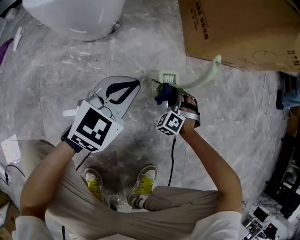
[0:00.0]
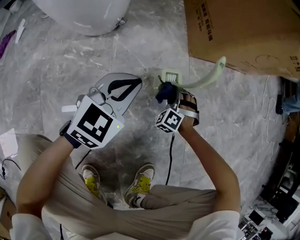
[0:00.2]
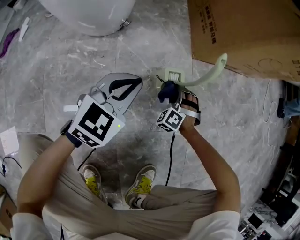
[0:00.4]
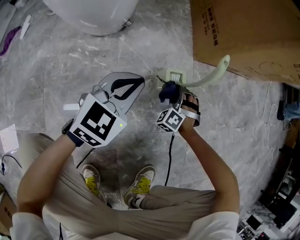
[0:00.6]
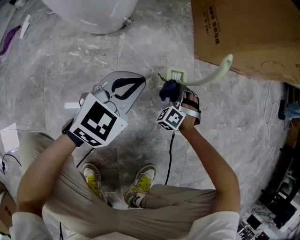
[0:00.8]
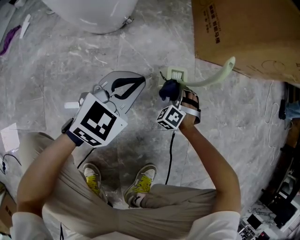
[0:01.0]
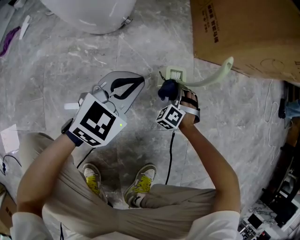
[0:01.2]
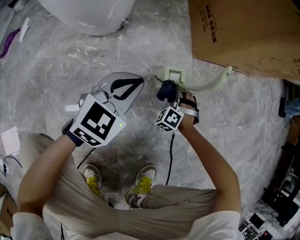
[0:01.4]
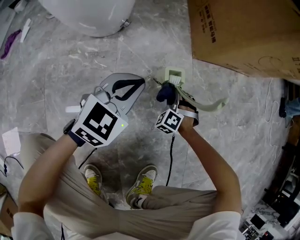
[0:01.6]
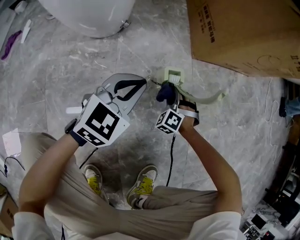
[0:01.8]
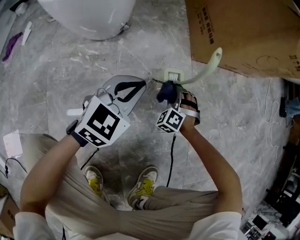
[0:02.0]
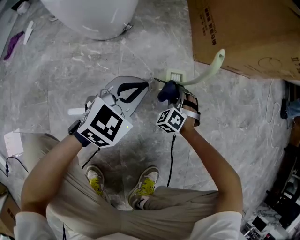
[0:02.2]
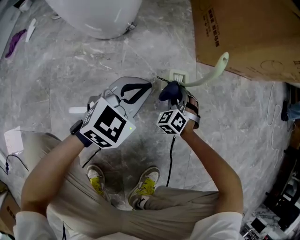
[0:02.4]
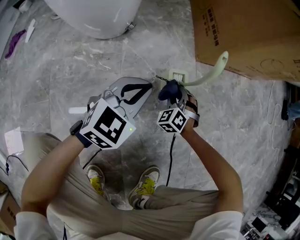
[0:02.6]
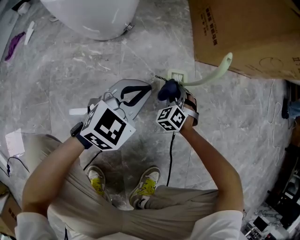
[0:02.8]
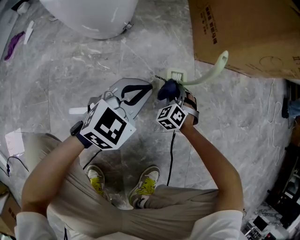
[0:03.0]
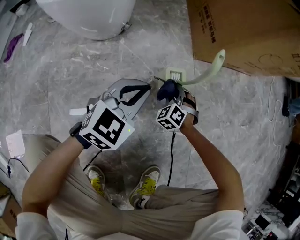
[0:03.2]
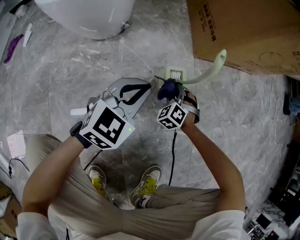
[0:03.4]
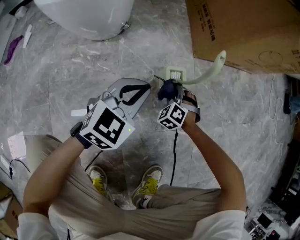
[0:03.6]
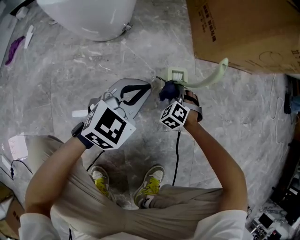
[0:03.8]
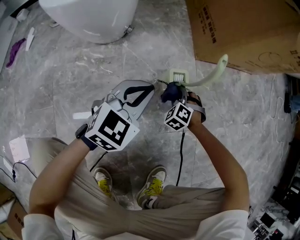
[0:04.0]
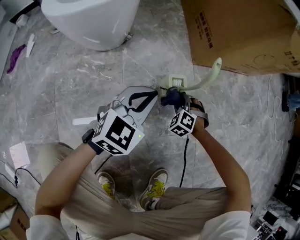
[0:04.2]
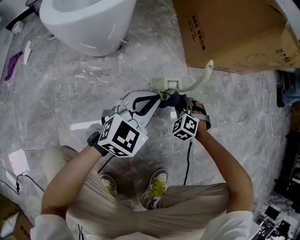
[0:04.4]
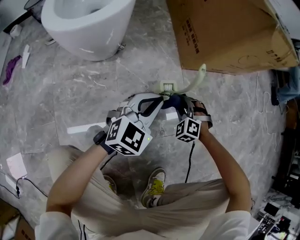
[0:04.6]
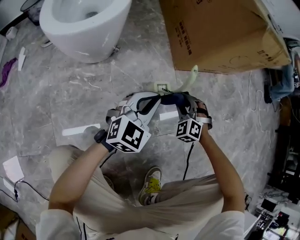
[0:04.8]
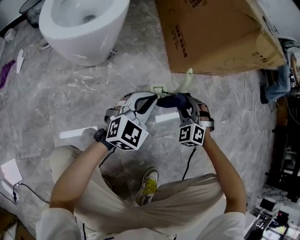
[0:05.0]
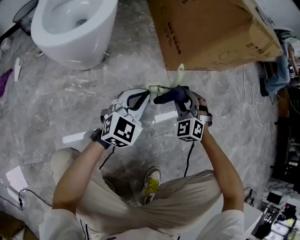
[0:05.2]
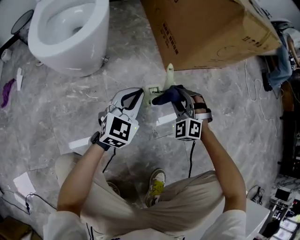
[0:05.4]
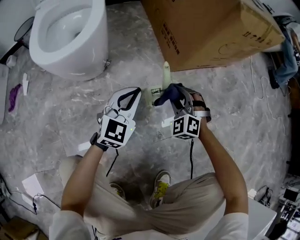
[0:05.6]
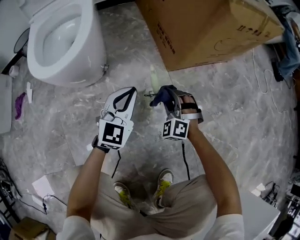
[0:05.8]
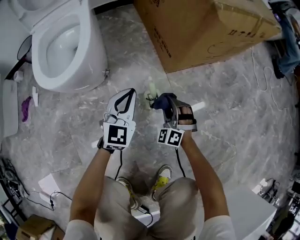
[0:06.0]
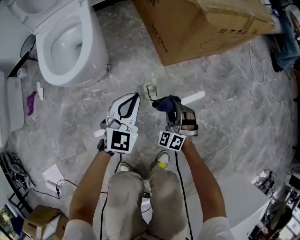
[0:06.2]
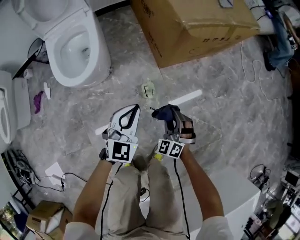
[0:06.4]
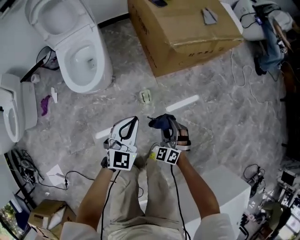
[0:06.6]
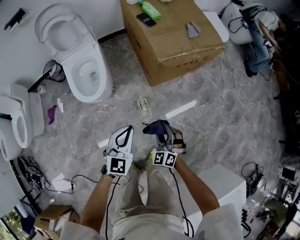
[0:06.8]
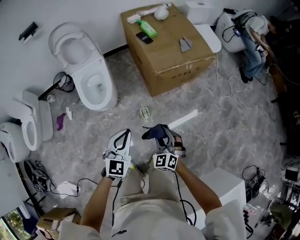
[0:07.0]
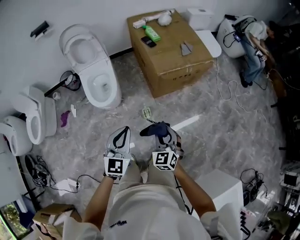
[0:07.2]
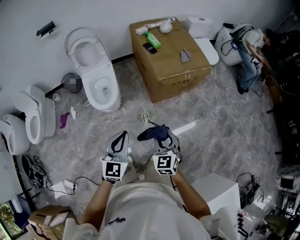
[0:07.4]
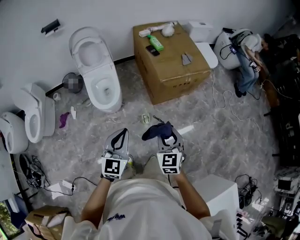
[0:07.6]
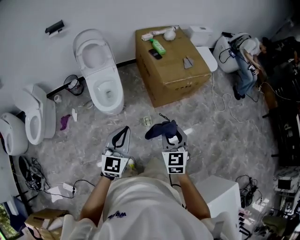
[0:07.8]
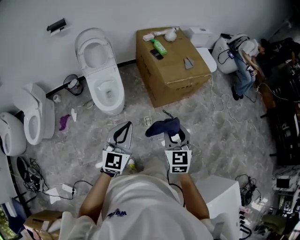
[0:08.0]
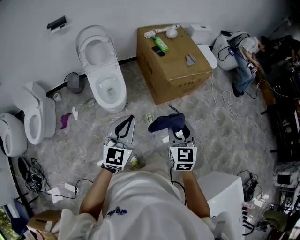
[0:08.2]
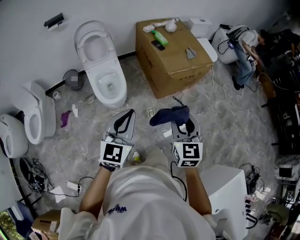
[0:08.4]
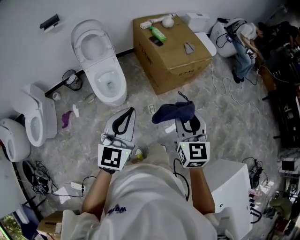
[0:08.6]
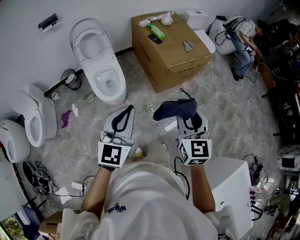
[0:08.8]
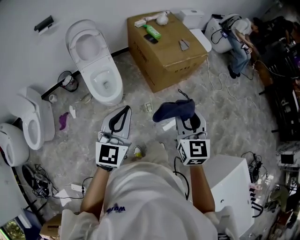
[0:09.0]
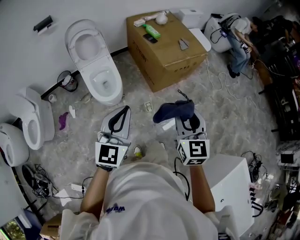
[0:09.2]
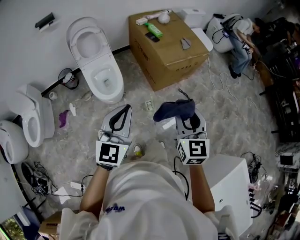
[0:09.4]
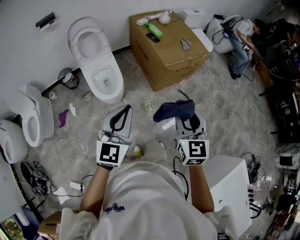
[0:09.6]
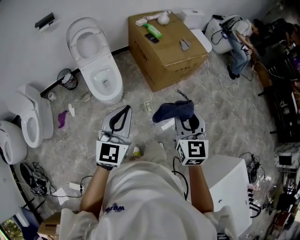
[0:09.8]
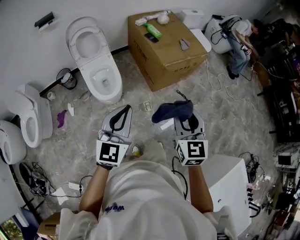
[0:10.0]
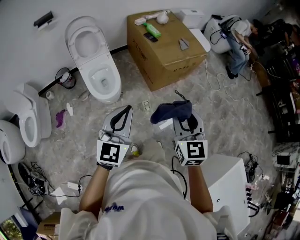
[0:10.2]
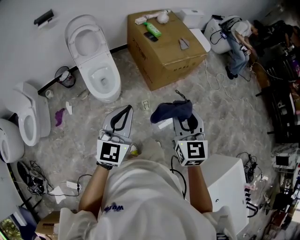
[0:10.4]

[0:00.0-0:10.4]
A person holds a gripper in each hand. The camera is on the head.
0:00.0 to 0:01.4: The grippers move only a little.
0:03.0 to 0:04.4: The right gripper changes place by approximately 5 cm.
0:04.4 to 0:06.0: The right gripper is displaced upward by approximately 15 cm, and turns by some 30 degrees; the left gripper heads upward and forward, covering about 10 cm.
0:06.0 to 0:07.4: Both grippers move upward, roughly 70 cm. The right gripper twists roughly 50 degrees clockwise, seen from behind.
0:07.4 to 0:09.0: The left gripper heads to the left and upward, covering roughly 15 cm. The right gripper is displaced upward and to the left by some 15 cm.
0:09.0 to 0:10.4: The grippers stay close to where they were, moving slightly.

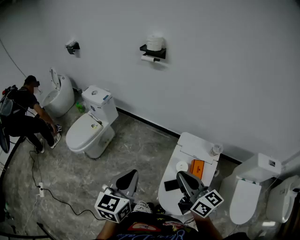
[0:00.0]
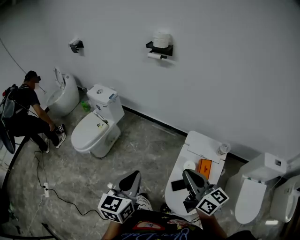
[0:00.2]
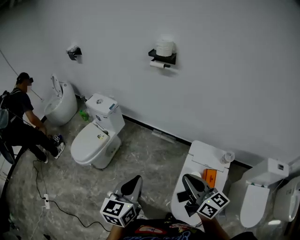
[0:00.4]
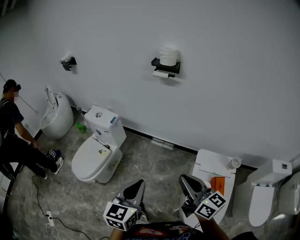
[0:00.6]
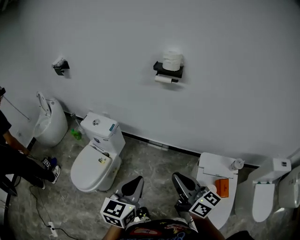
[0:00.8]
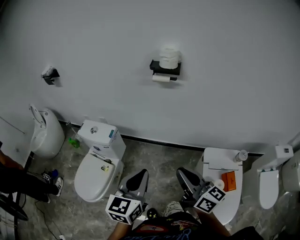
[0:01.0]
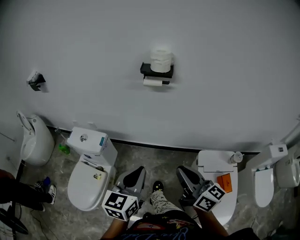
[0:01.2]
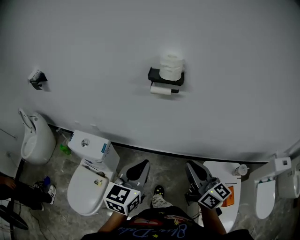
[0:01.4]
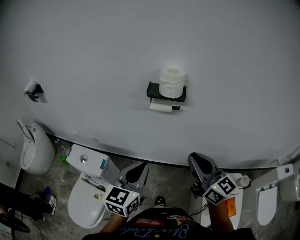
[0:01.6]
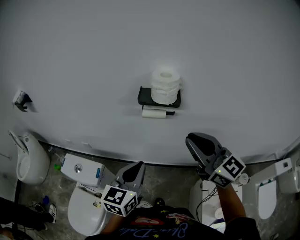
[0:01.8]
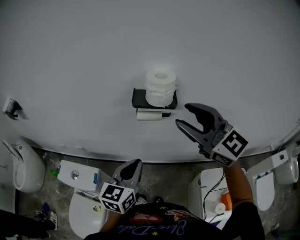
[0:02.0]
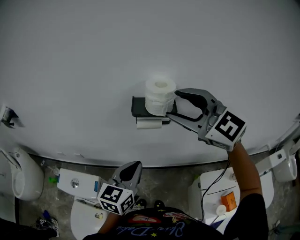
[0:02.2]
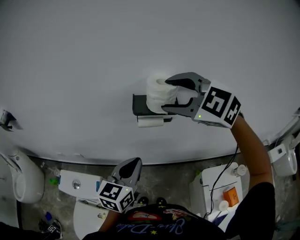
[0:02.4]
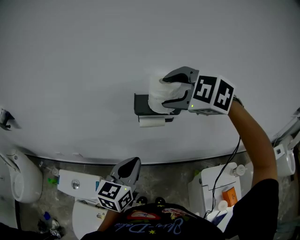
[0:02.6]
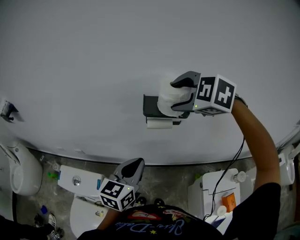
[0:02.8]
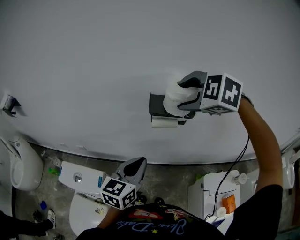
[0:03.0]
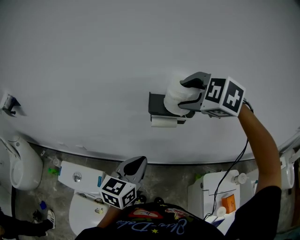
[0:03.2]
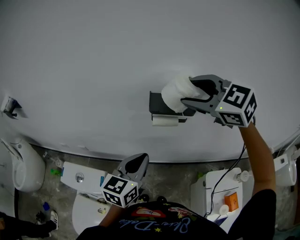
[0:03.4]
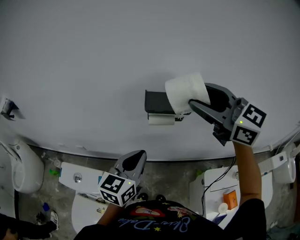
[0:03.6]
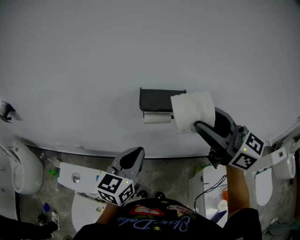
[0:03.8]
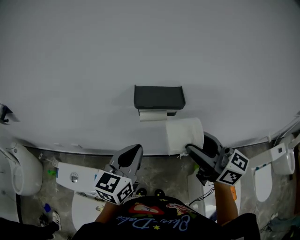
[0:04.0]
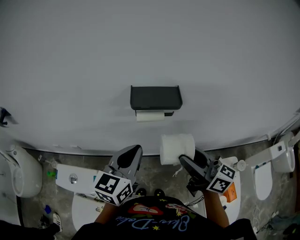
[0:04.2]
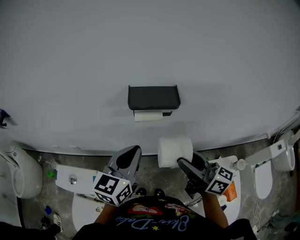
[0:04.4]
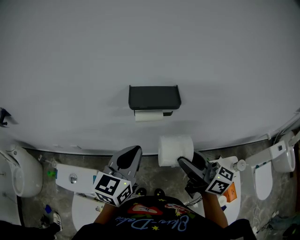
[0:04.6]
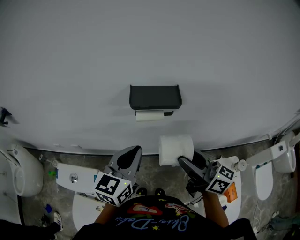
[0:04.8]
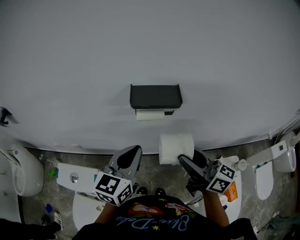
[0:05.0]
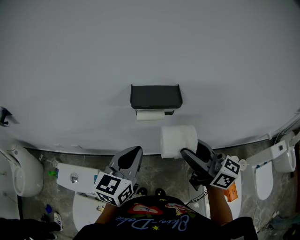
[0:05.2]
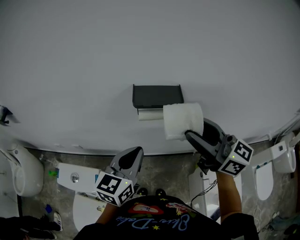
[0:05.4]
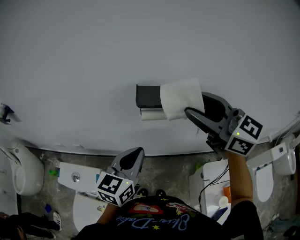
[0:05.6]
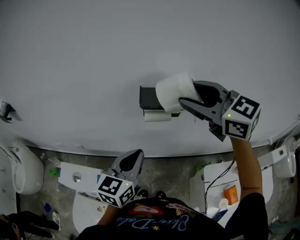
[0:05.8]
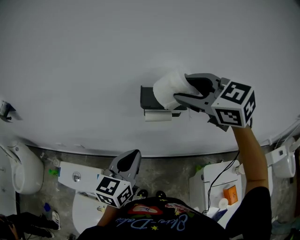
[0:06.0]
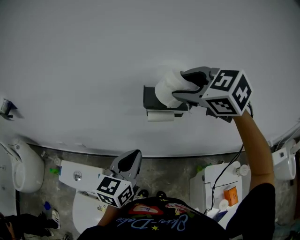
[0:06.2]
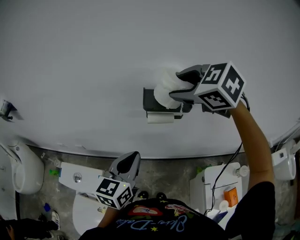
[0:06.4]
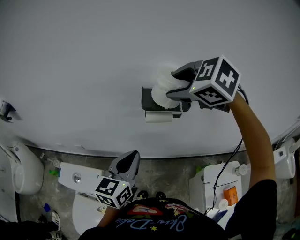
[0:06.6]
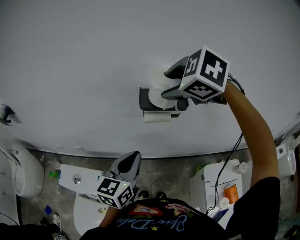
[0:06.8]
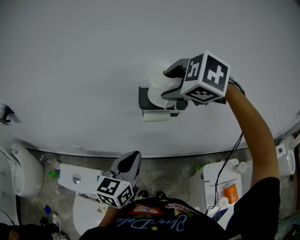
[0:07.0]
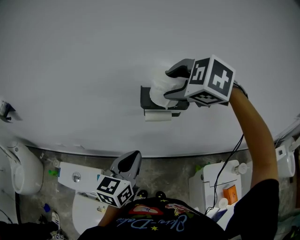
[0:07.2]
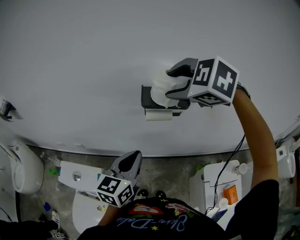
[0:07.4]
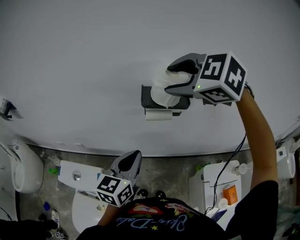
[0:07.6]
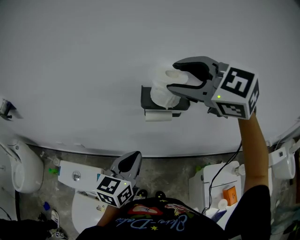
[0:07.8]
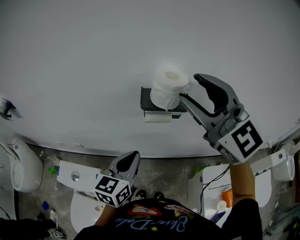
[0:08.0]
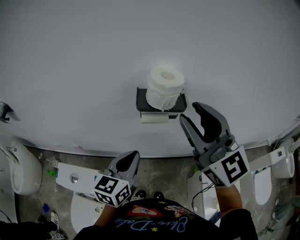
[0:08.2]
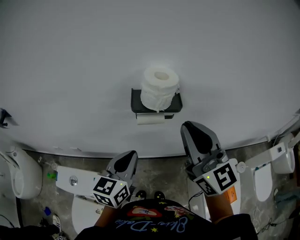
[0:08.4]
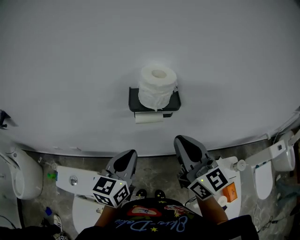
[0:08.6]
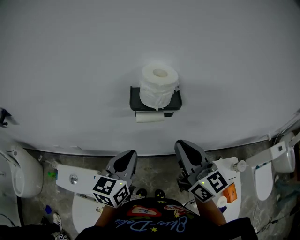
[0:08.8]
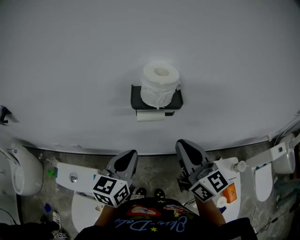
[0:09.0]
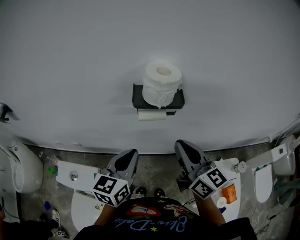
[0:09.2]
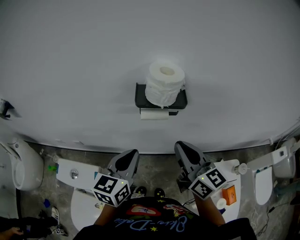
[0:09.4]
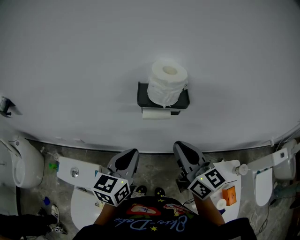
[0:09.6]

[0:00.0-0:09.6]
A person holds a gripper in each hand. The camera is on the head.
0:00.0 to 0:01.6: Both grippers are carried forward, approximately 50 cm. The right gripper changes its angle by about 30 degrees. The left gripper rotates some 20 degrees.
0:01.6 to 0:03.2: The right gripper heads forward, covering about 25 cm, angles its fingers downward, by some 60 degrees, and opens its fingers; the left gripper heads forward, covering some 15 cm.
0:03.2 to 0:04.8: The right gripper travels backward, downward and to the right by approximately 20 cm, and angles its fingers upward, by some 60 degrees.
0:04.8 to 0:06.4: The right gripper moves forward, upward and to the left, roughly 20 cm, and tilts its fingers about 50 degrees downward.
0:06.4 to 0:08.0: The right gripper goes about 10 cm backward and upward, and angles its fingers upward, by some 50 degrees.
0:08.0 to 0:09.6: The right gripper heads downward, covering approximately 20 cm, rolls clockwise, seen from behind, by approximately 50 degrees, and closes up.

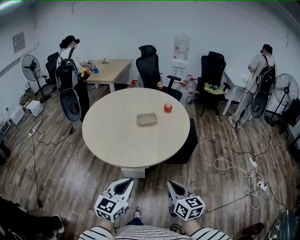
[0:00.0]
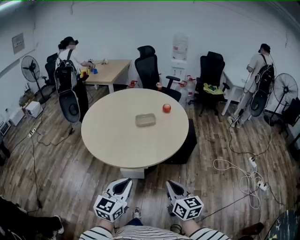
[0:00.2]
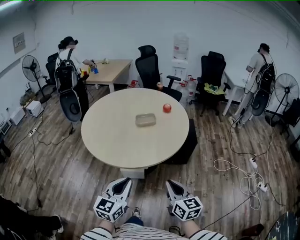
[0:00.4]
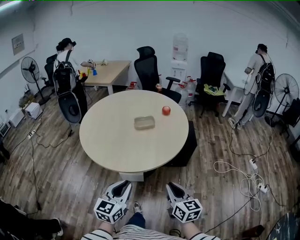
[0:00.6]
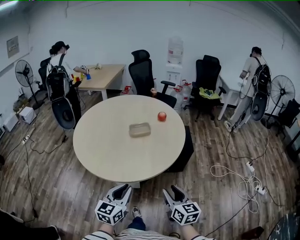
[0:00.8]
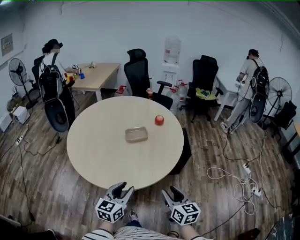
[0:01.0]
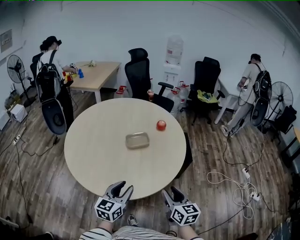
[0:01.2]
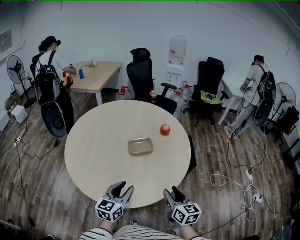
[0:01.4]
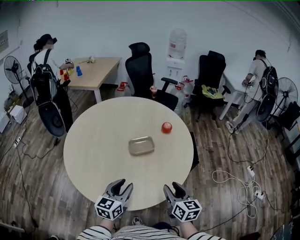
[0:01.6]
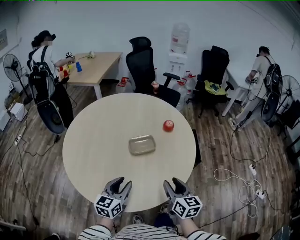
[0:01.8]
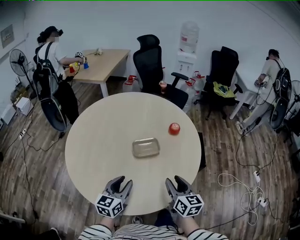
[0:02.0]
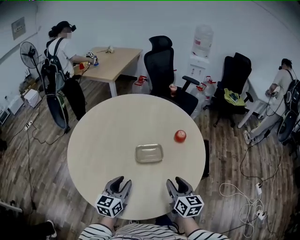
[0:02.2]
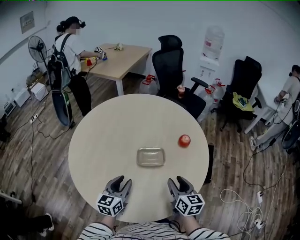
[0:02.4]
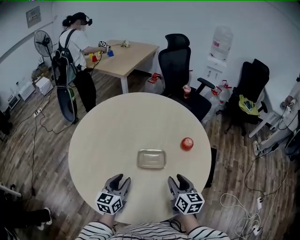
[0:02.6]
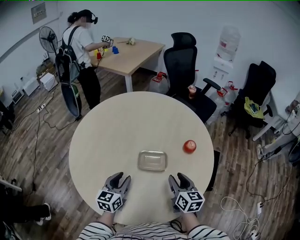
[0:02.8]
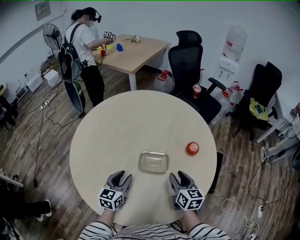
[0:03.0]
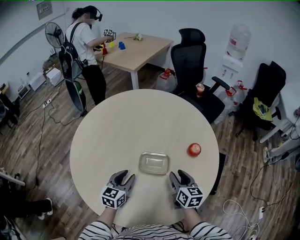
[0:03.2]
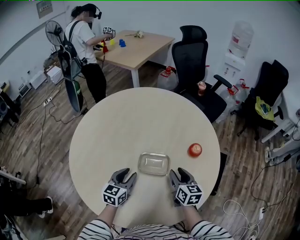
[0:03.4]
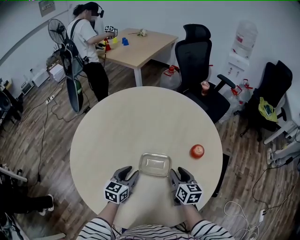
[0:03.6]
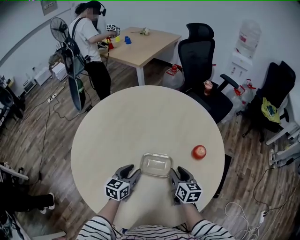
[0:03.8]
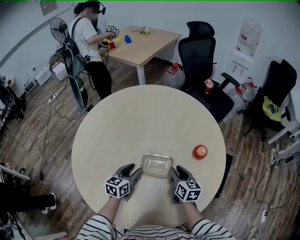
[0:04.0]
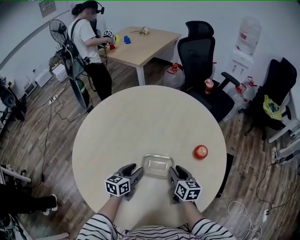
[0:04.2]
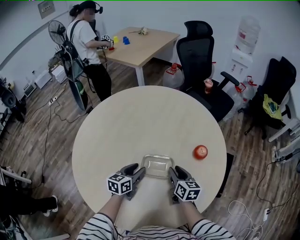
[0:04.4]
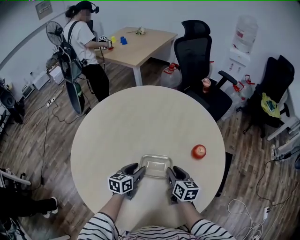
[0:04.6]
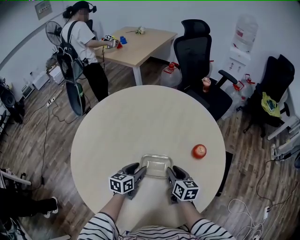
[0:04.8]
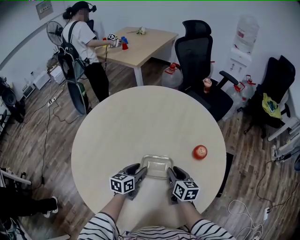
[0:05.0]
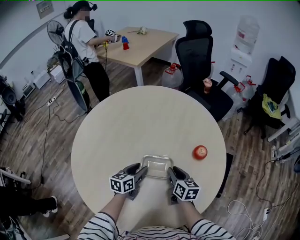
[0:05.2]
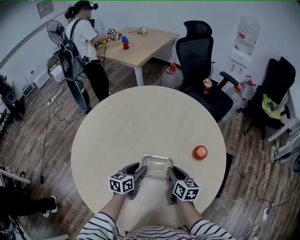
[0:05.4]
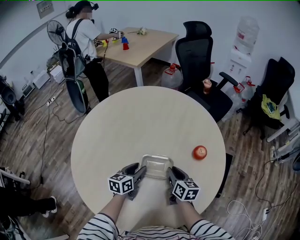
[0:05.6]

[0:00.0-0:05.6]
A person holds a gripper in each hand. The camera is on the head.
0:00.0 to 0:01.4: The two grippers go some 30 cm forward. The right gripper opens up; the left gripper opens its fingers.
0:01.4 to 0:02.8: The two grippers go about 25 cm forward. The left gripper rotates approximately 30 degrees.
0:02.8 to 0:04.2: Both grippers travel together forward and downward, some 15 cm.
0:04.2 to 0:05.6: The grippers move only a little.
